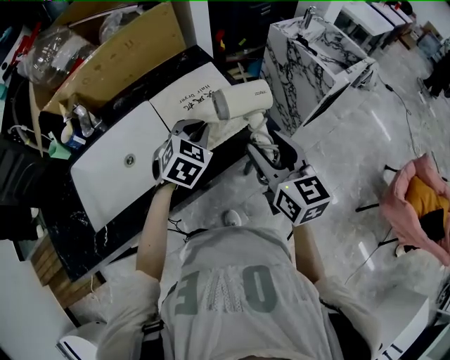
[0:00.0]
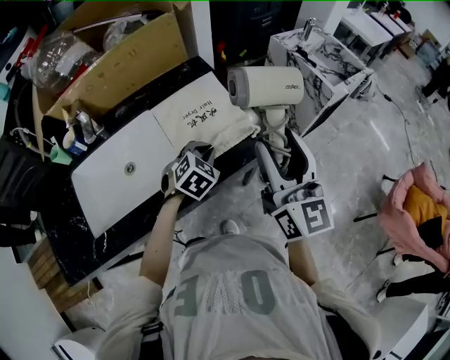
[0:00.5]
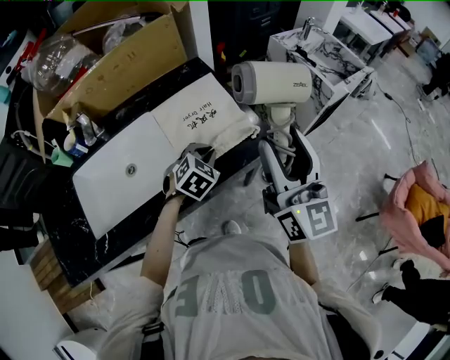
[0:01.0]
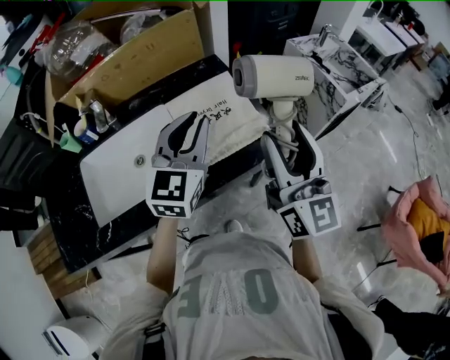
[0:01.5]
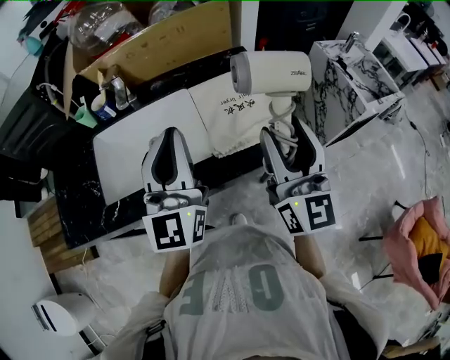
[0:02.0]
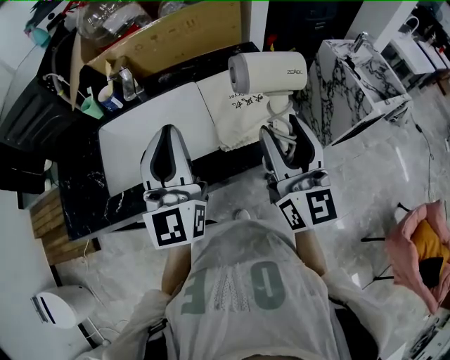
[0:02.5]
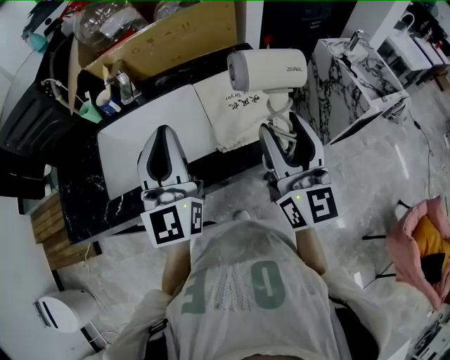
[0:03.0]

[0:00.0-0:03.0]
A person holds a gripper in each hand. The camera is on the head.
0:00.0 to 0:01.5: Both grippers travel together upward, some 15 cm. The left gripper points its fingers approximately 30 degrees further upward, while the right gripper changes its angle by roughly 30 degrees.
0:01.5 to 0:03.0: The left gripper travels to the left and backward by some 15 cm, and changes its angle by roughly 30 degrees; the right gripper is displaced to the left by roughly 5 cm.

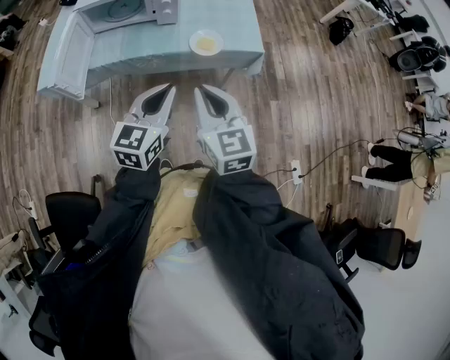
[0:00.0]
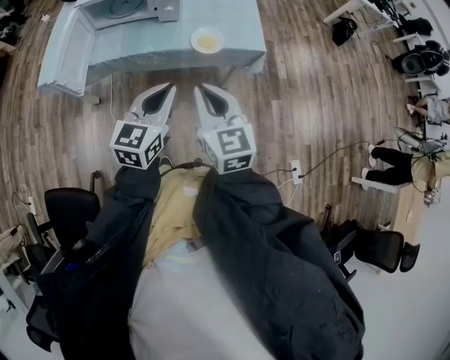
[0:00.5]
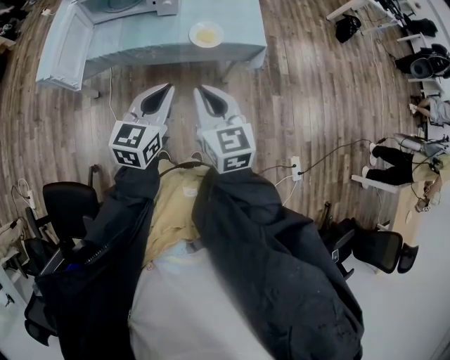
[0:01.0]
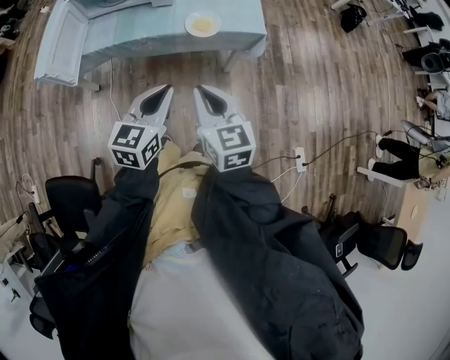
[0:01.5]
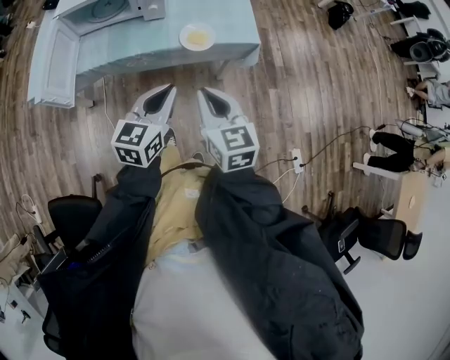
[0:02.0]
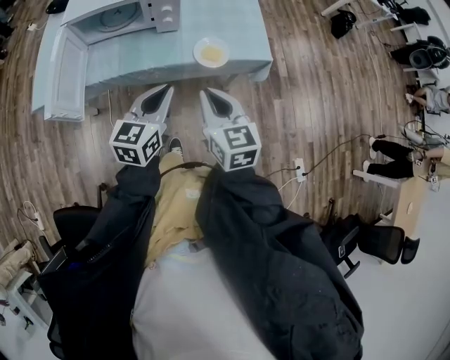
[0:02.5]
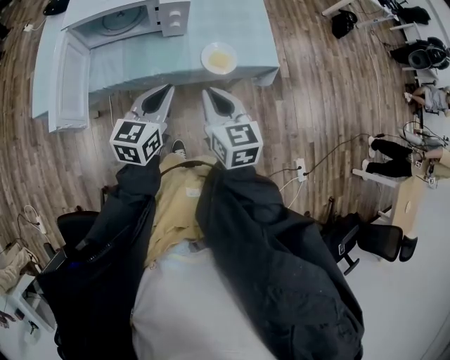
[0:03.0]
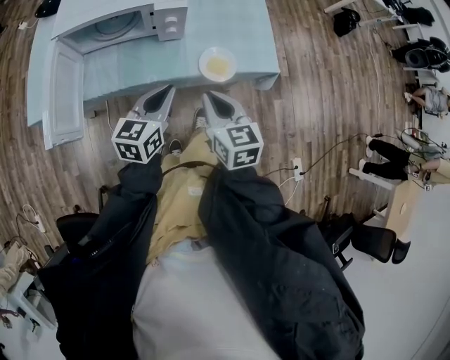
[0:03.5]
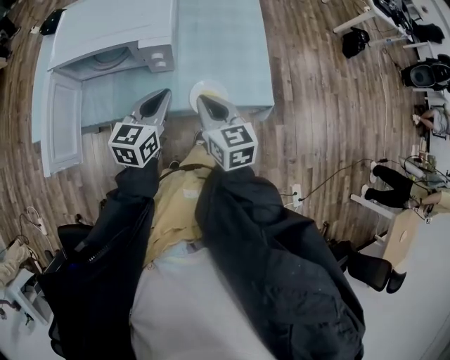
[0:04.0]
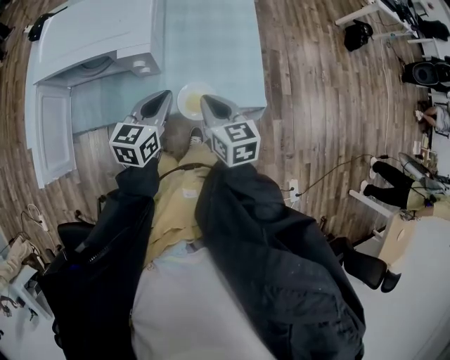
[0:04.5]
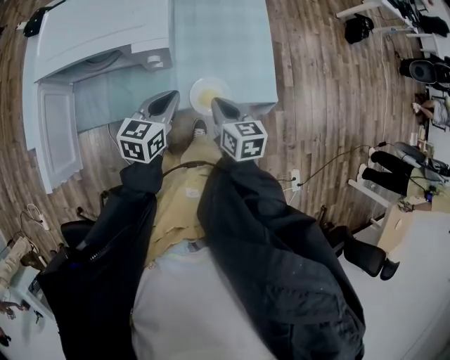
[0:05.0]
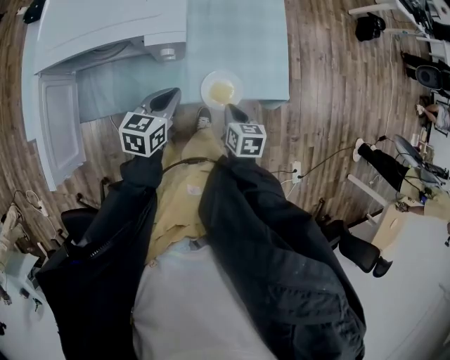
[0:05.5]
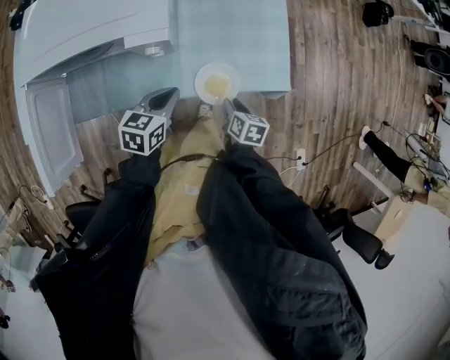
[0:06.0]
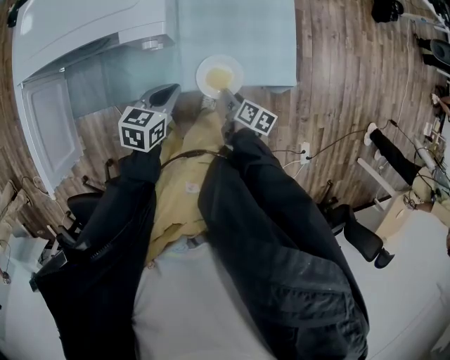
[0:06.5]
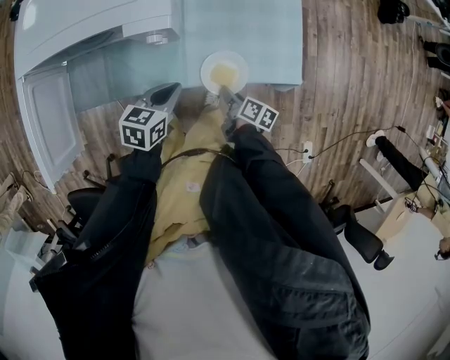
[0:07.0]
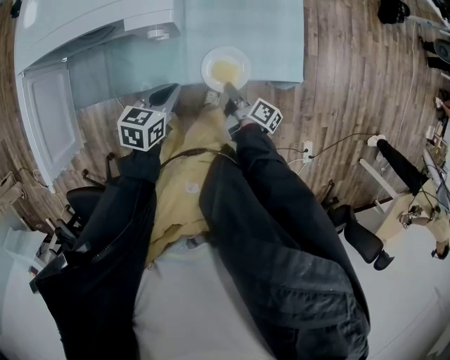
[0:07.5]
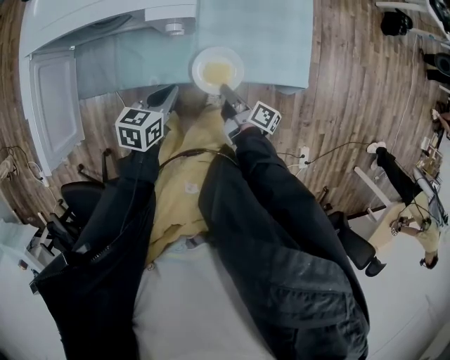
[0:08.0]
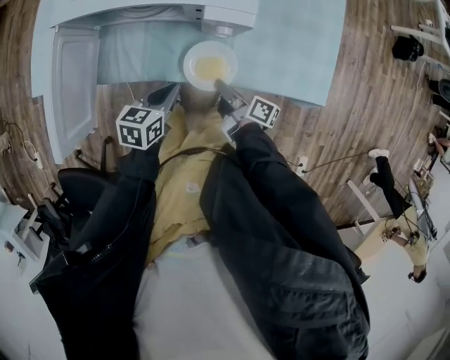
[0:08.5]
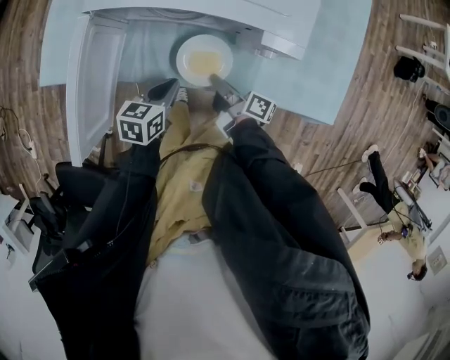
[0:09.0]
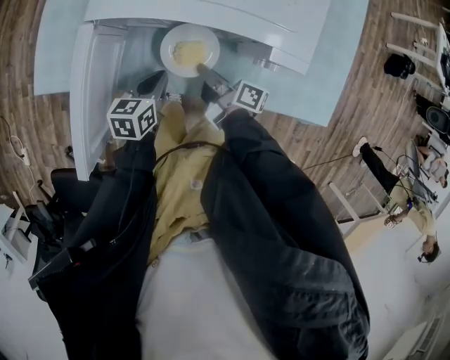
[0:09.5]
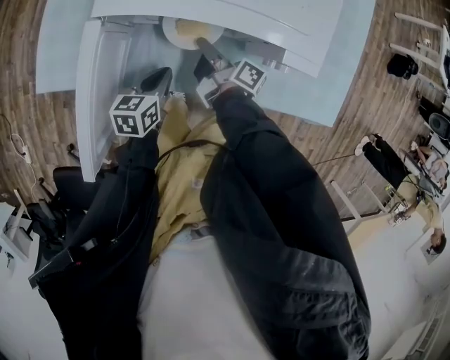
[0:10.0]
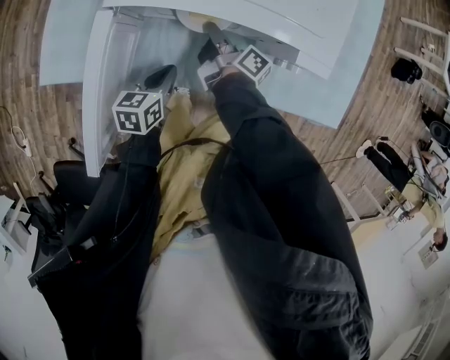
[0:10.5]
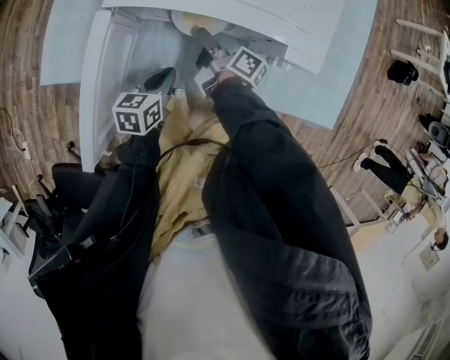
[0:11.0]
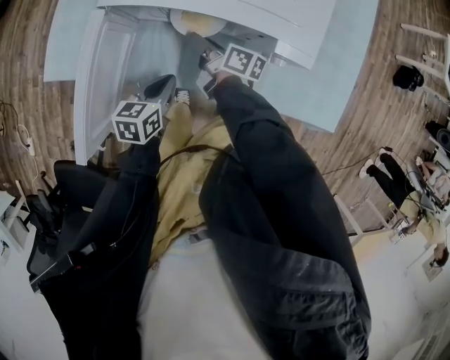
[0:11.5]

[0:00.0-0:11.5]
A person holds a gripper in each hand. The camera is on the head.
0:00.0 to 0:02.0: The left gripper moves some 5 cm, while the right gripper travels downward by about 5 cm.
0:02.0 to 0:04.0: Both grippers travel together forward, approximately 25 cm.
0:04.0 to 0:06.0: The left gripper heads downward, covering some 15 cm, and swivels about 20 degrees; the right gripper travels downward by some 25 cm, angles its fingers downward, by approximately 30 degrees, and opens up.
0:06.0 to 0:07.5: The right gripper swivels some 50 degrees, and closes up.
0:07.5 to 0:09.5: The grippers both shift to the left by roughly 30 cm. The left gripper rotates approximately 20 degrees. The right gripper changes its angle by some 30 degrees.
0:09.5 to 0:11.5: The right gripper shifts roughly 5 cm forward, and opens up.

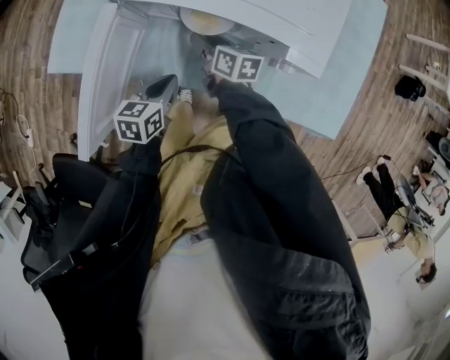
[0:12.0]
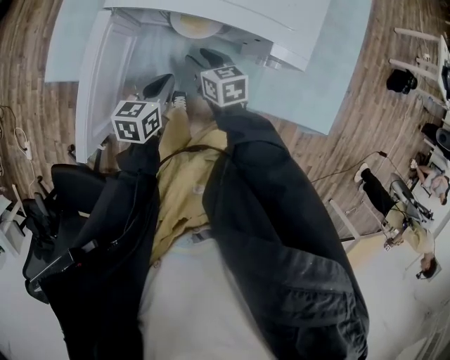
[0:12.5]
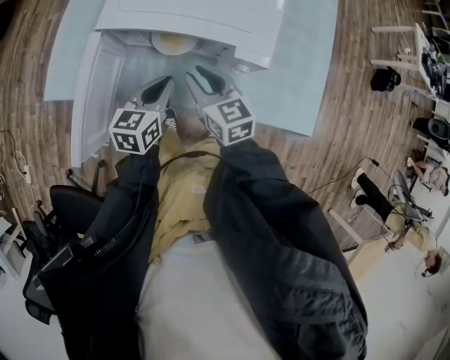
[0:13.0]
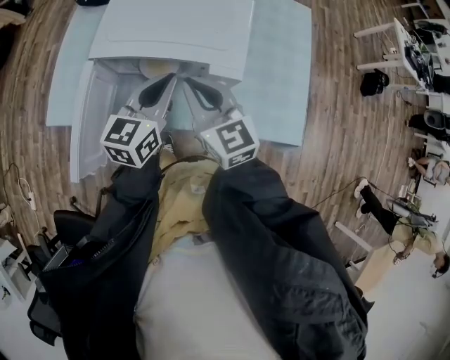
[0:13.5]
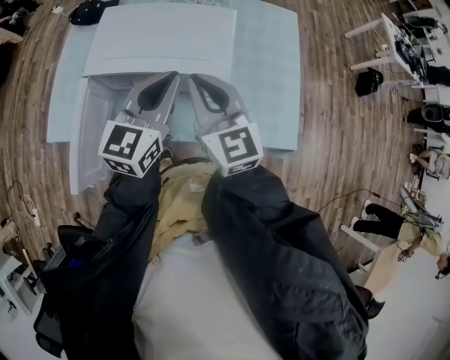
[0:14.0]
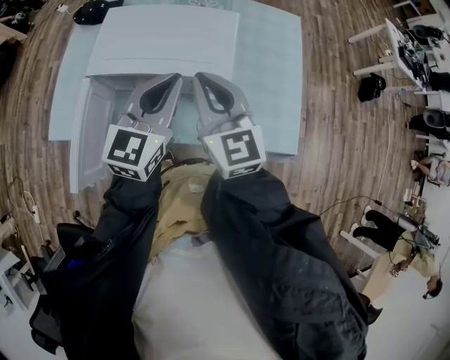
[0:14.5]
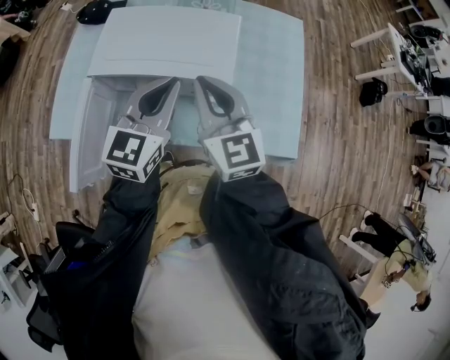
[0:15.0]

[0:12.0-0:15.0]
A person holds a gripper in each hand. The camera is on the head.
0:12.0 to 0:13.5: The left gripper moves upward and to the right, roughly 30 cm, and swivels about 30 degrees. The right gripper travels upward by approximately 30 cm, rotates around the line of its fingers by approximately 40 degrees, counterclockwise from behind, and closes up.
0:13.5 to 0:15.0: Both grippers travel together upward, approximately 5 cm.

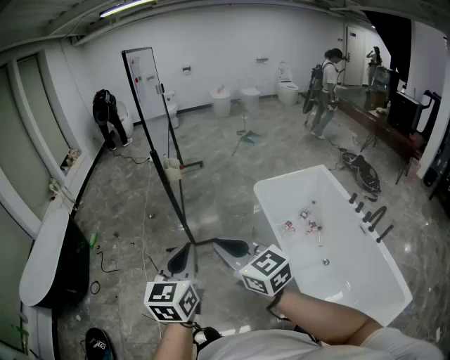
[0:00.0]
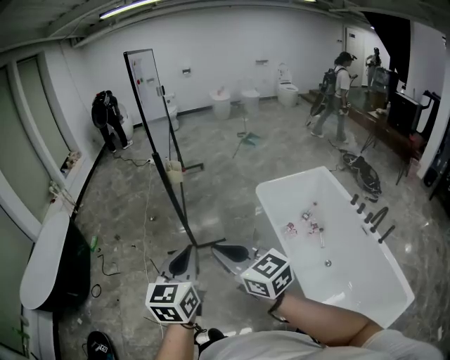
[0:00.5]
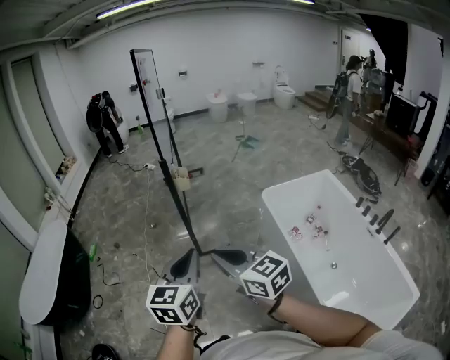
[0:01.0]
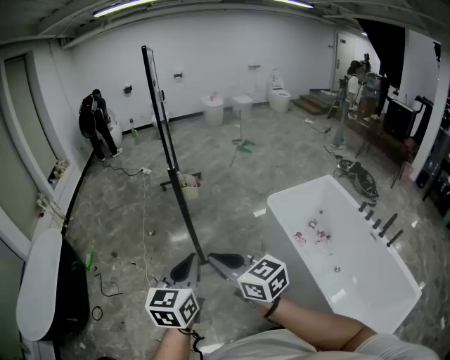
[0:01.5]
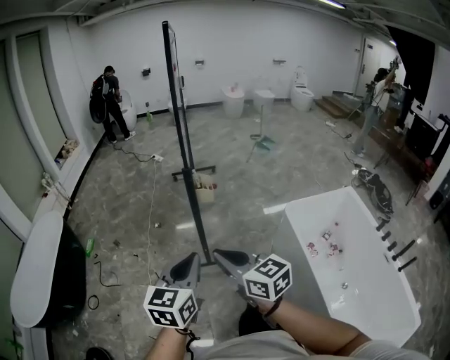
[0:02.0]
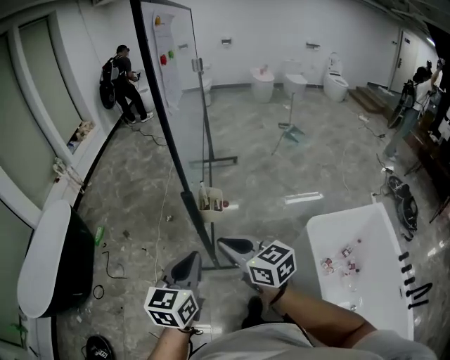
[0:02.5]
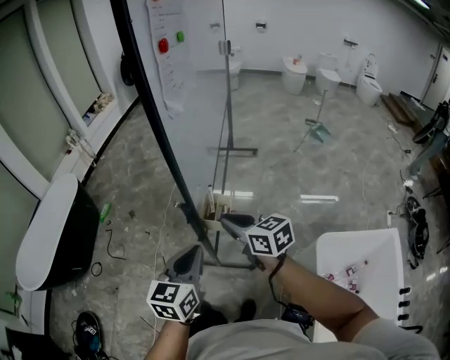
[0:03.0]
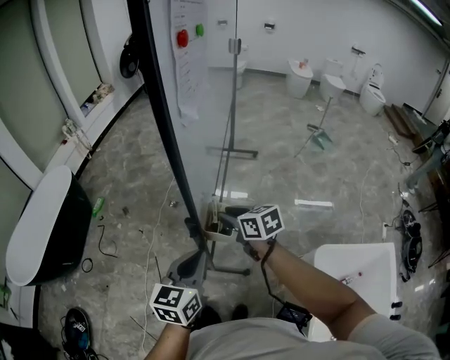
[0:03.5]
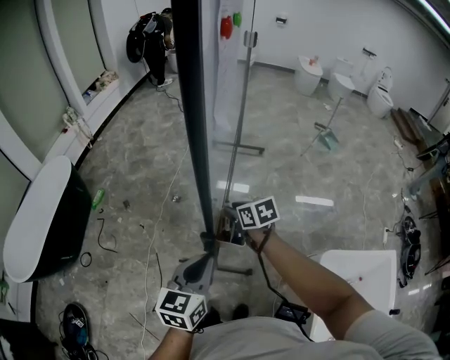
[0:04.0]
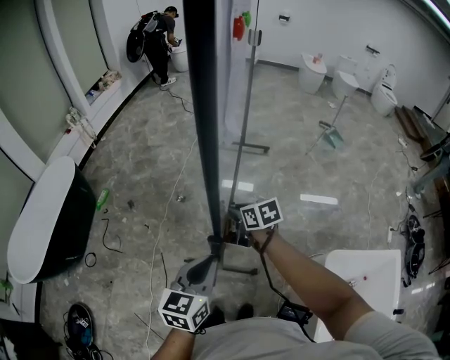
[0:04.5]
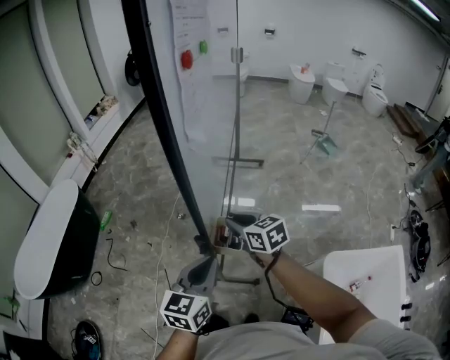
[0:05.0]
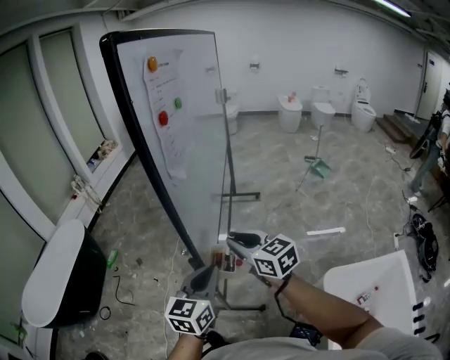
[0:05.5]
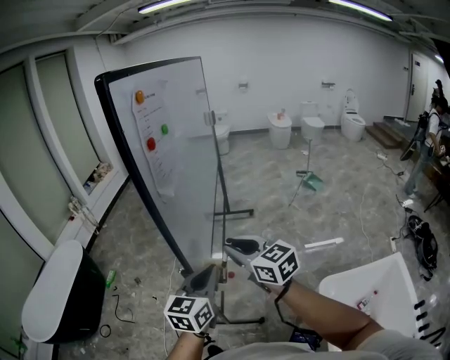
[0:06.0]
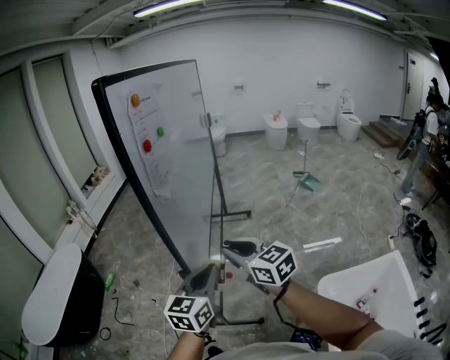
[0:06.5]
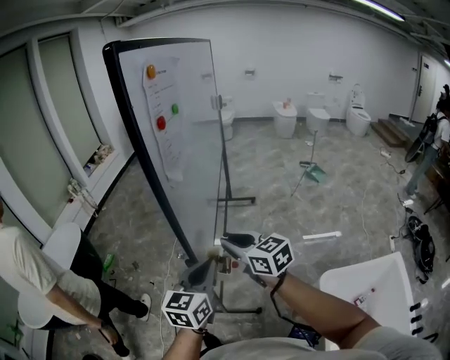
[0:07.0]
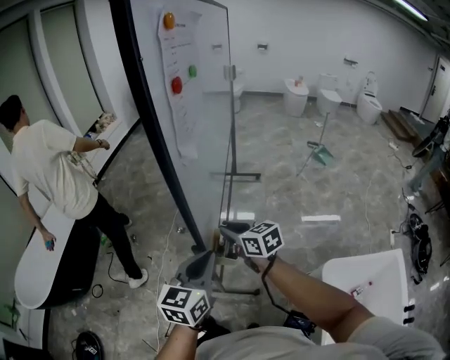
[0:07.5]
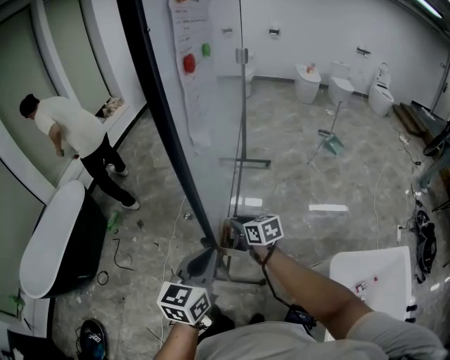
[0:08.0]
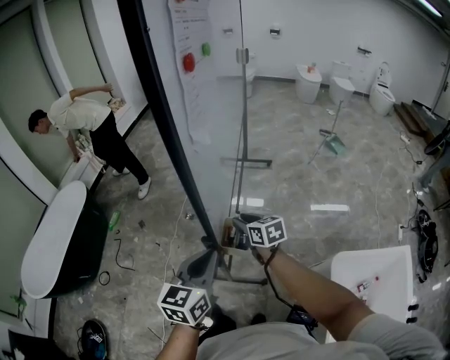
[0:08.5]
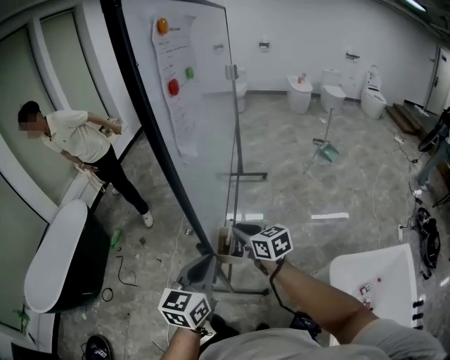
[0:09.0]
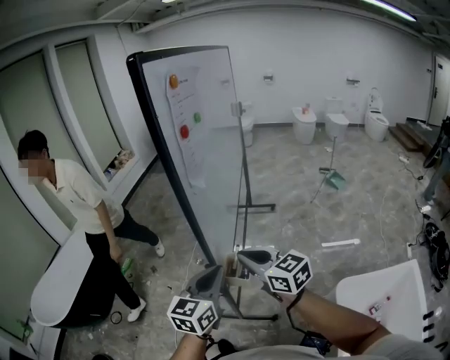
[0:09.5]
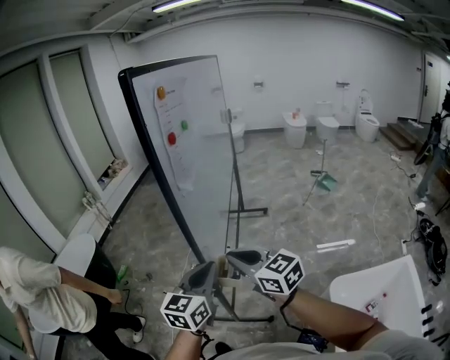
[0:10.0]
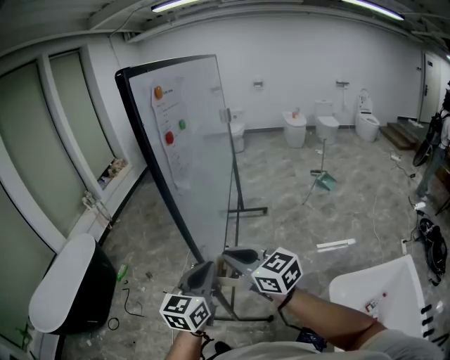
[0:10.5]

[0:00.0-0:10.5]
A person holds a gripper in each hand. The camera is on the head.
0:00.0 to 0:02.0: Both grippers travel together forward and to the left, about 35 cm.
0:02.0 to 0:04.0: The grippers both shift forward by approximately 50 cm. The right gripper tilts its fingers about 30 degrees downward, and opens its fingers.
0:04.0 to 0:06.5: The left gripper heads upward and to the right, covering roughly 15 cm. Meanwhile the right gripper travels upward and backward by about 30 cm, and tilts its fingers approximately 30 degrees upward.
0:06.5 to 0:08.5: The right gripper is displaced downward and forward by about 25 cm, and turns by about 30 degrees. Meanwhile the left gripper is displaced to the left and downward by roughly 10 cm.
0:08.5 to 0:10.5: The right gripper shifts roughly 30 cm upward and backward, turns by some 30 degrees, and closes its fingers; the left gripper travels upward by approximately 10 cm.
